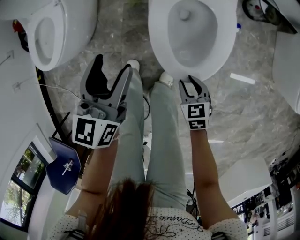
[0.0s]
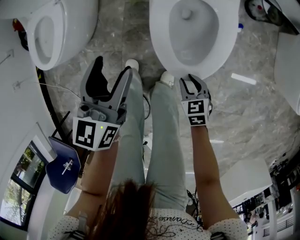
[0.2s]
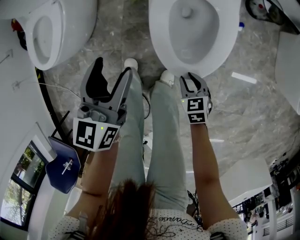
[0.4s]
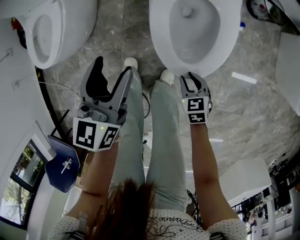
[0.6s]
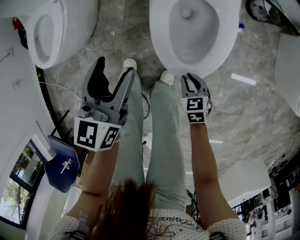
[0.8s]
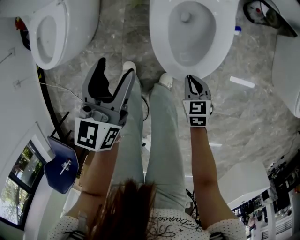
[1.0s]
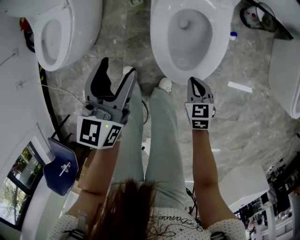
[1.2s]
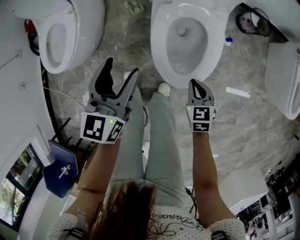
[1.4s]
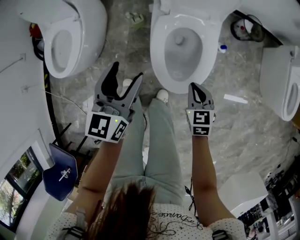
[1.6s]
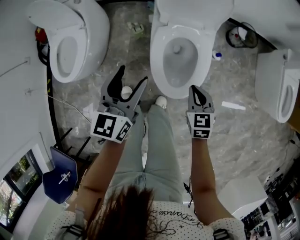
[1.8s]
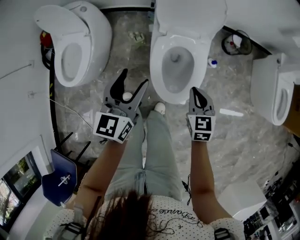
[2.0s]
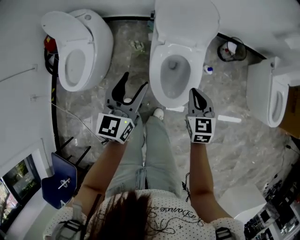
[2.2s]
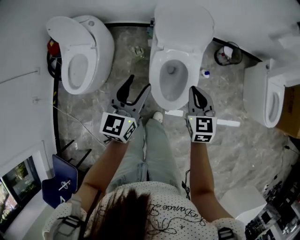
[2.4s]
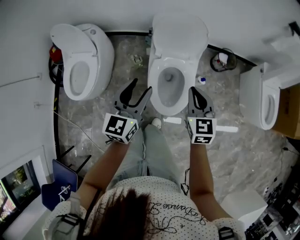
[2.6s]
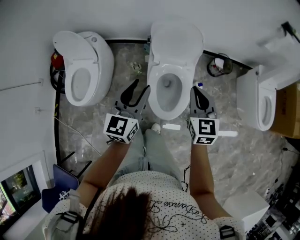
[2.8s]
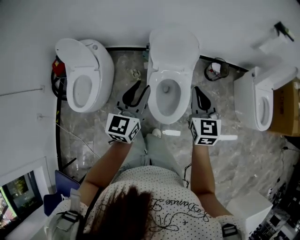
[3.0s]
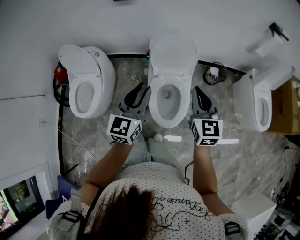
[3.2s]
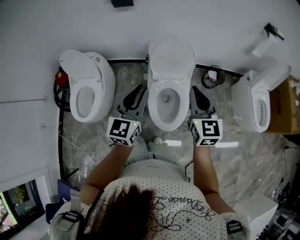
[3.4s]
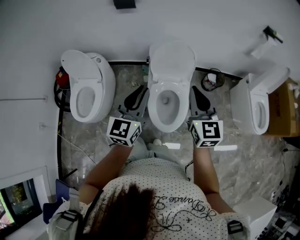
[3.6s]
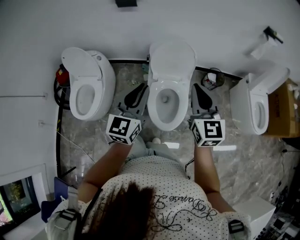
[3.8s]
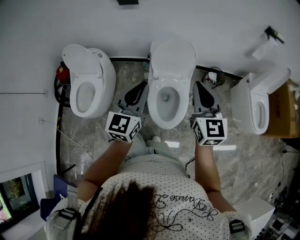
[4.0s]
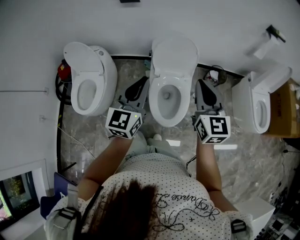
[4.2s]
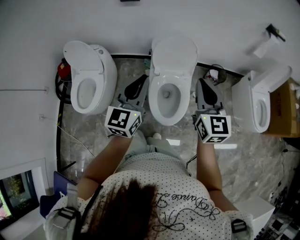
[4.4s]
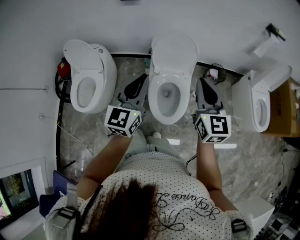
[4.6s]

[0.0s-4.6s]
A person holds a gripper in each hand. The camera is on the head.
0.0s to 1.6s: The left gripper travels upward by approximately 10 cm. Meanwhile the right gripper is displaced upward, forward and to the right by roughly 15 cm, and closes up.
1.6s to 3.0s: The right gripper is displaced upward by some 40 cm, and changes its angle by approximately 30 degrees; the left gripper travels upward by some 25 cm, and closes.
3.0s to 4.6s: The grippers both shift upward by approximately 10 cm. The left gripper closes its fingers.

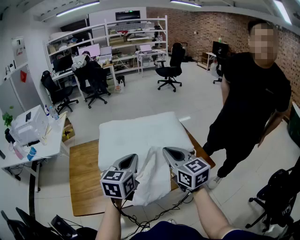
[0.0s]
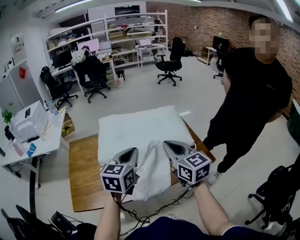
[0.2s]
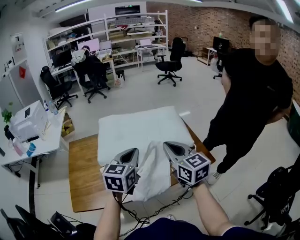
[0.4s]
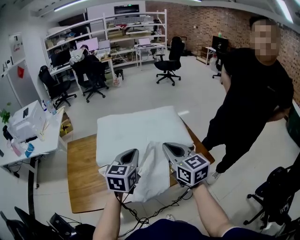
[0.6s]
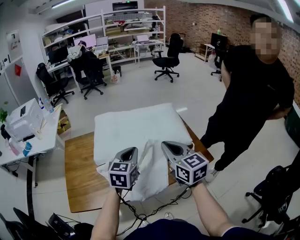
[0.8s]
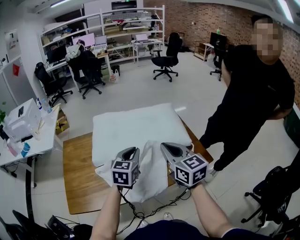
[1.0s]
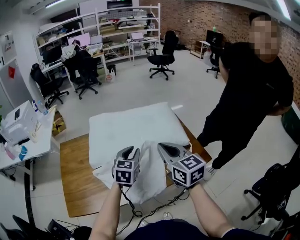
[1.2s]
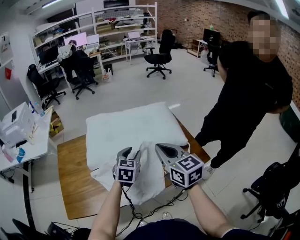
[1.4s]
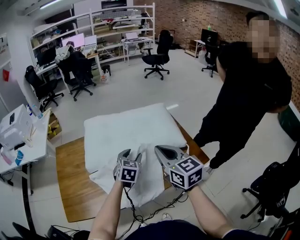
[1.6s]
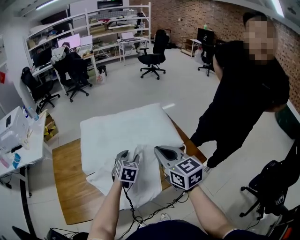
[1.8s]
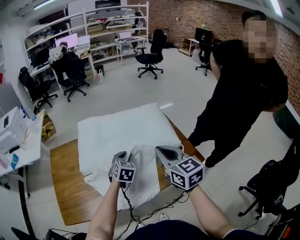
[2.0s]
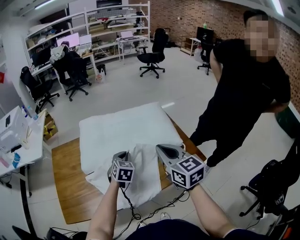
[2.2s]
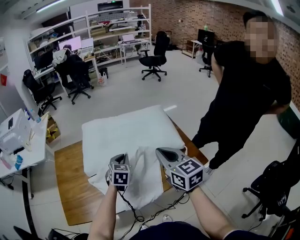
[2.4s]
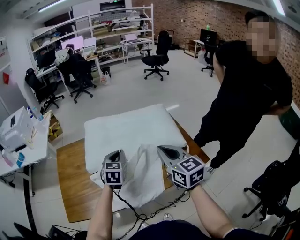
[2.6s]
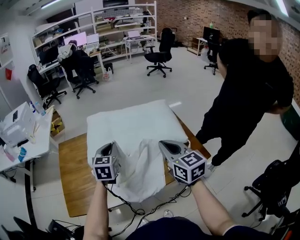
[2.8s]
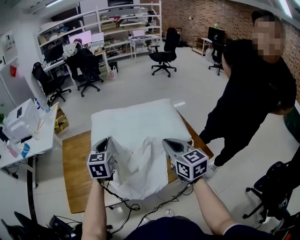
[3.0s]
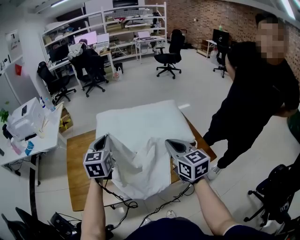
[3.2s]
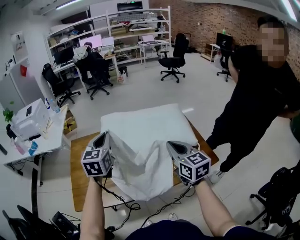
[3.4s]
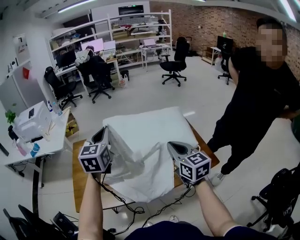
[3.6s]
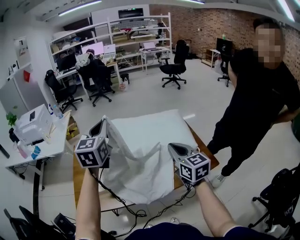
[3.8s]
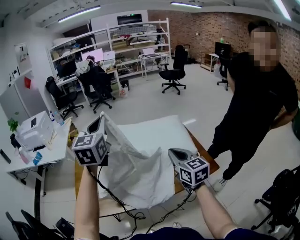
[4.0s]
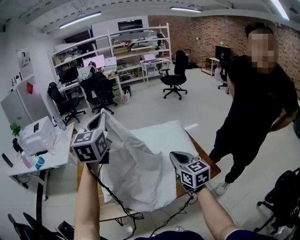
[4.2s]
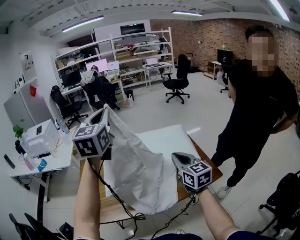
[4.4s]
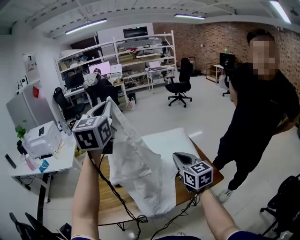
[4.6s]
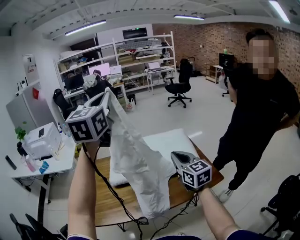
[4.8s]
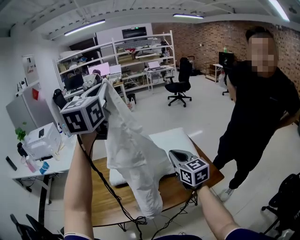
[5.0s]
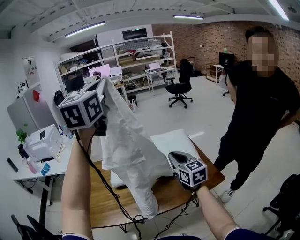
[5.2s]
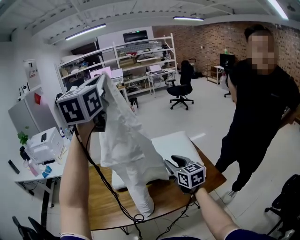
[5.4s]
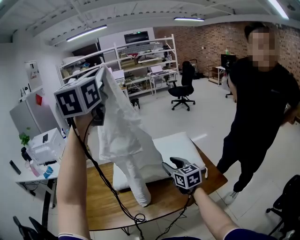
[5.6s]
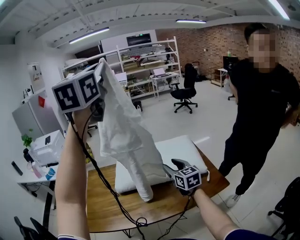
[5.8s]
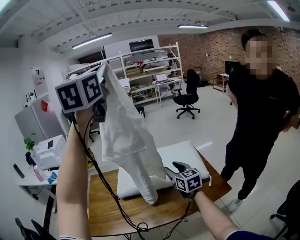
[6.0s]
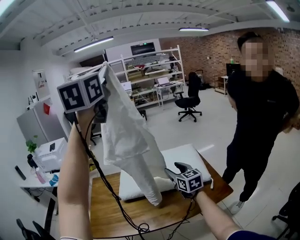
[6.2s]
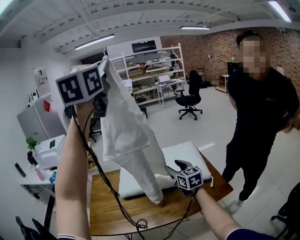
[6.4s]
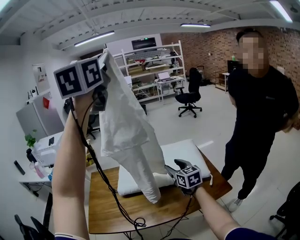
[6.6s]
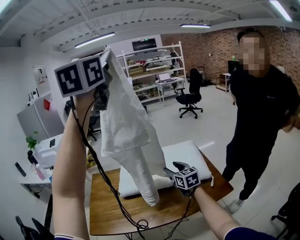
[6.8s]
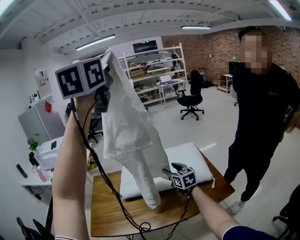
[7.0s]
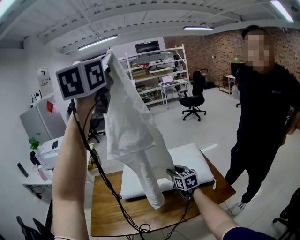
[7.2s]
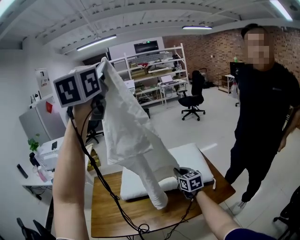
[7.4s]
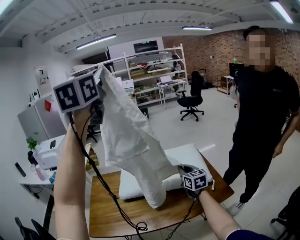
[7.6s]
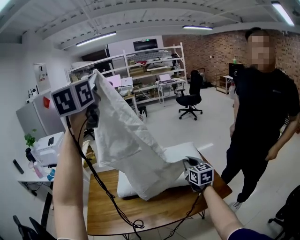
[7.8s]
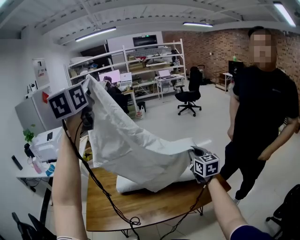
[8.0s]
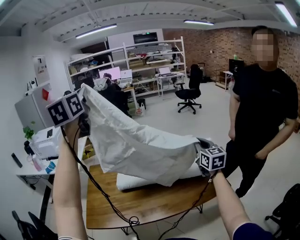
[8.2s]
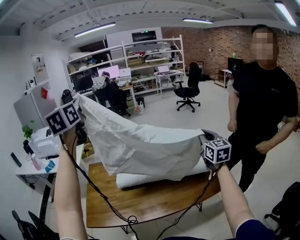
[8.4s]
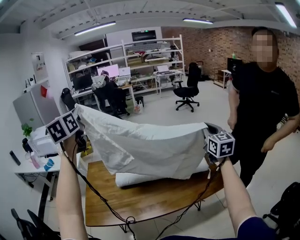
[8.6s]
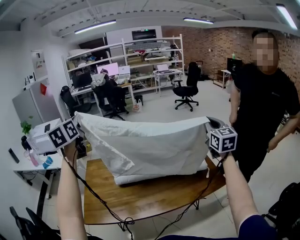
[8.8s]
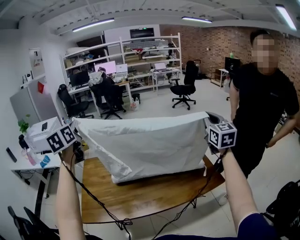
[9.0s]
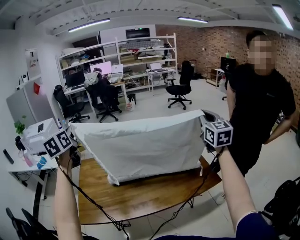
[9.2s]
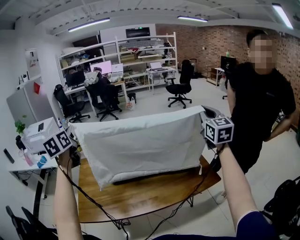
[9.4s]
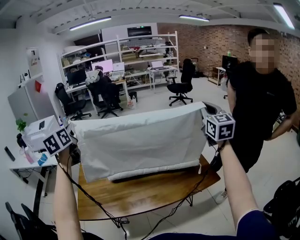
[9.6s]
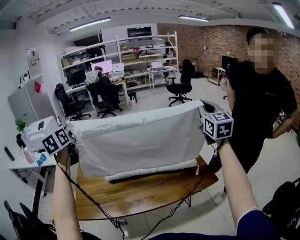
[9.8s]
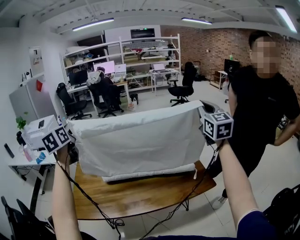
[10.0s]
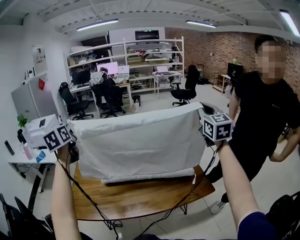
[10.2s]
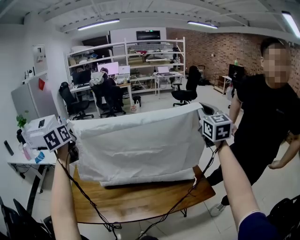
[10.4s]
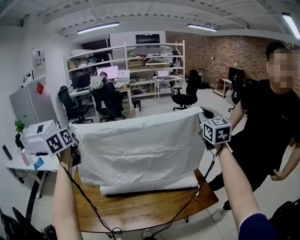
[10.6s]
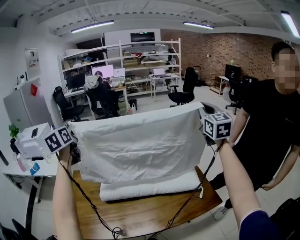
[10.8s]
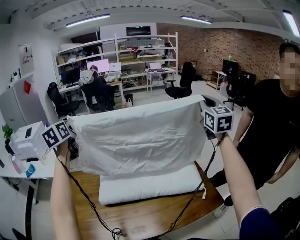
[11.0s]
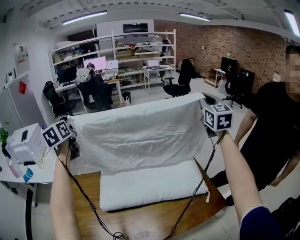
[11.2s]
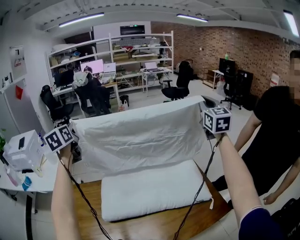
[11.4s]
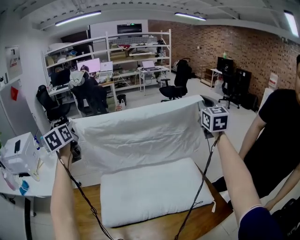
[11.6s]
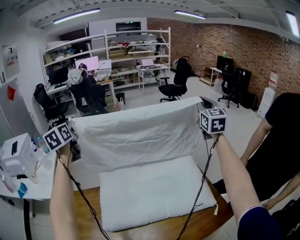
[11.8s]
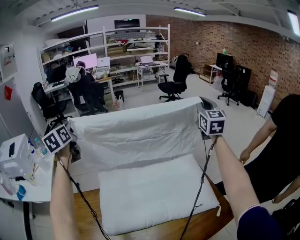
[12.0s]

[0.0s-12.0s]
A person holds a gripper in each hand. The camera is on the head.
0.0s to 1.6s: The left gripper is displaced downward and forward by roughly 20 cm, turns by about 20 degrees, and opens its fingers.
1.6s to 3.0s: The left gripper goes approximately 20 cm to the left and upward, swivels roughly 20 degrees, and closes up.
3.0s to 4.4s: The left gripper travels upward by approximately 30 cm, and rotates some 20 degrees.
4.4s to 6.0s: The right gripper moves forward, roughly 10 cm, and opens its fingers; the left gripper shifts some 25 cm upward.
6.0s to 7.6s: The right gripper shifts by about 5 cm, and closes up.
7.6s to 9.0s: The left gripper travels downward and to the left by some 35 cm, and changes its angle by roughly 30 degrees. Meanwhile the right gripper moves upward and to the right, some 25 cm, and rotates about 30 degrees.
9.0s to 10.4s: The right gripper is displaced upward by about 5 cm.
10.4s to 12.0s: Both grippers move forward, some 35 cm.

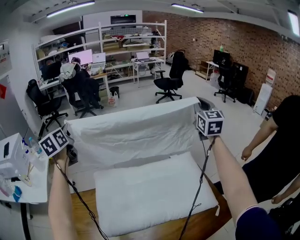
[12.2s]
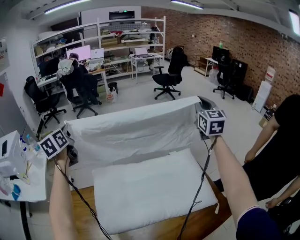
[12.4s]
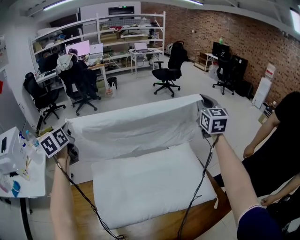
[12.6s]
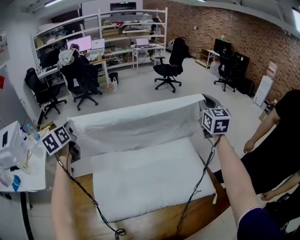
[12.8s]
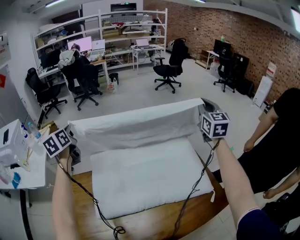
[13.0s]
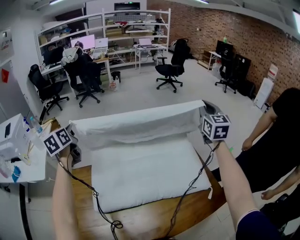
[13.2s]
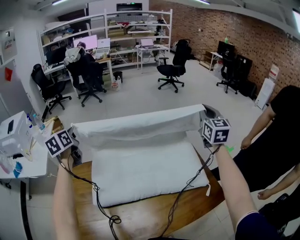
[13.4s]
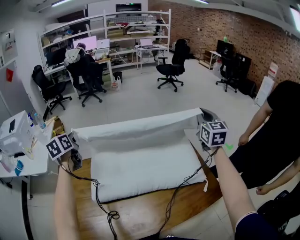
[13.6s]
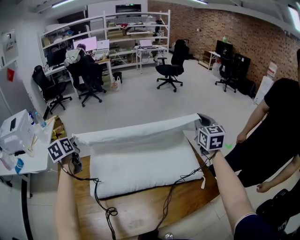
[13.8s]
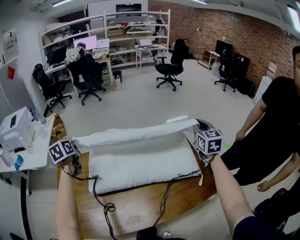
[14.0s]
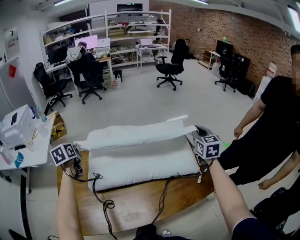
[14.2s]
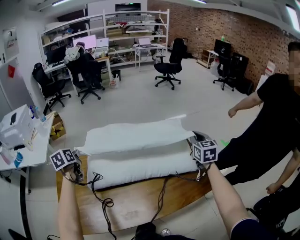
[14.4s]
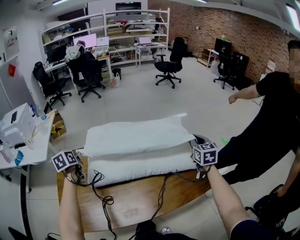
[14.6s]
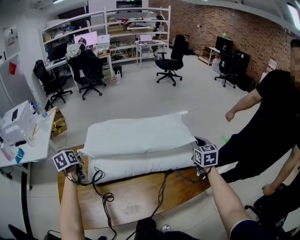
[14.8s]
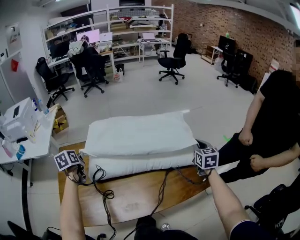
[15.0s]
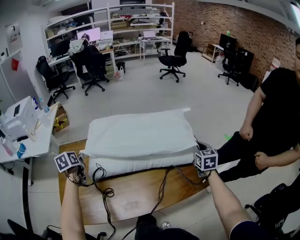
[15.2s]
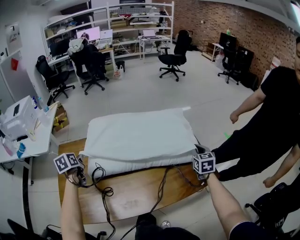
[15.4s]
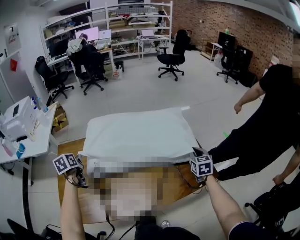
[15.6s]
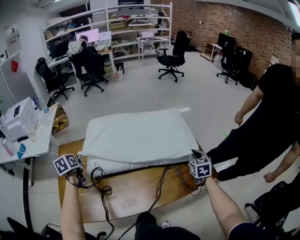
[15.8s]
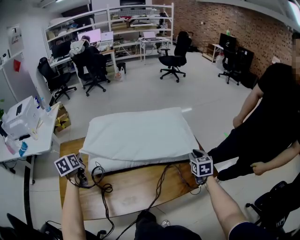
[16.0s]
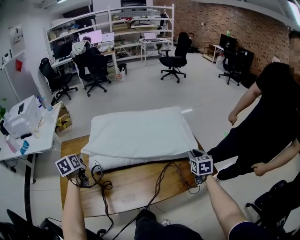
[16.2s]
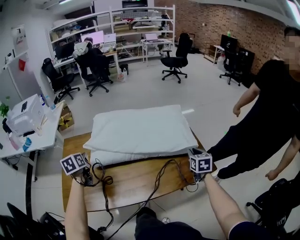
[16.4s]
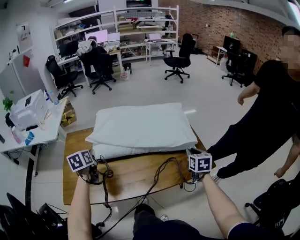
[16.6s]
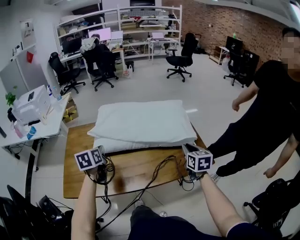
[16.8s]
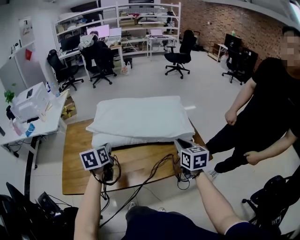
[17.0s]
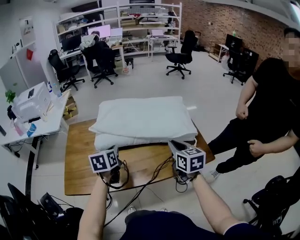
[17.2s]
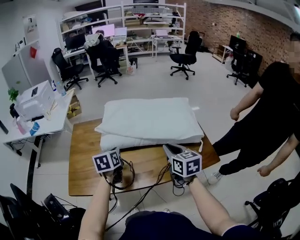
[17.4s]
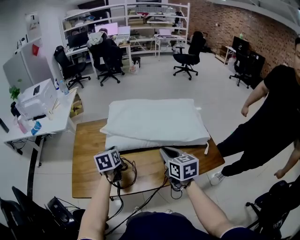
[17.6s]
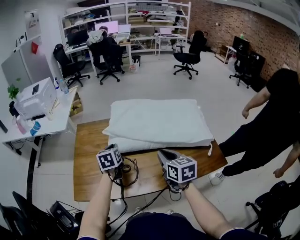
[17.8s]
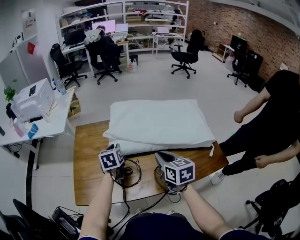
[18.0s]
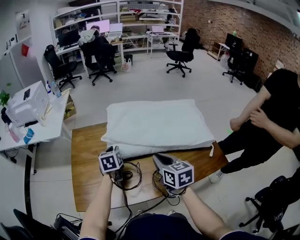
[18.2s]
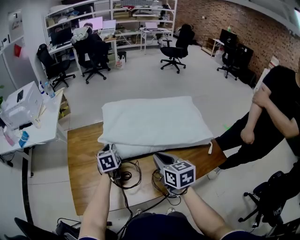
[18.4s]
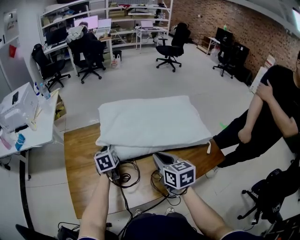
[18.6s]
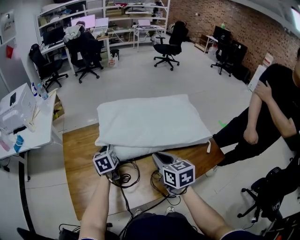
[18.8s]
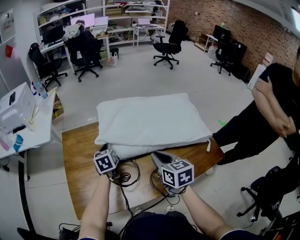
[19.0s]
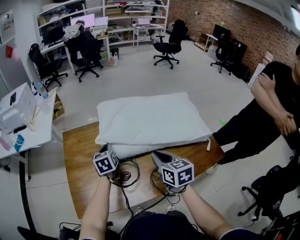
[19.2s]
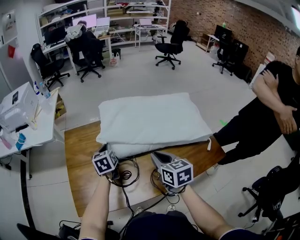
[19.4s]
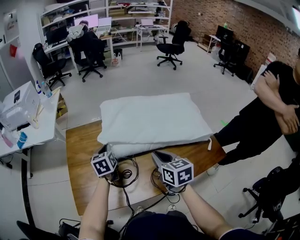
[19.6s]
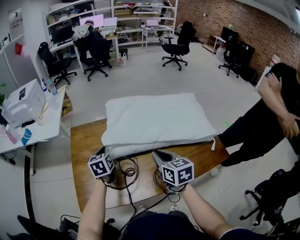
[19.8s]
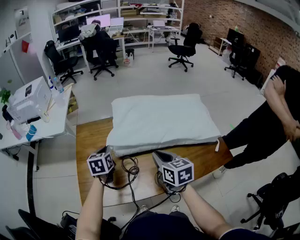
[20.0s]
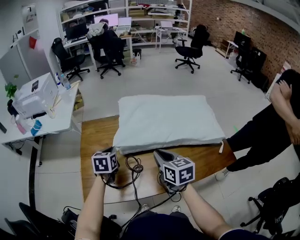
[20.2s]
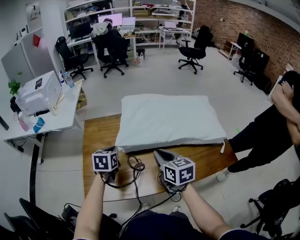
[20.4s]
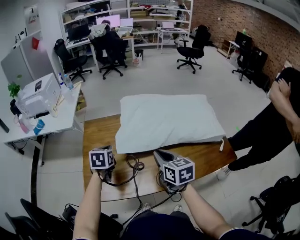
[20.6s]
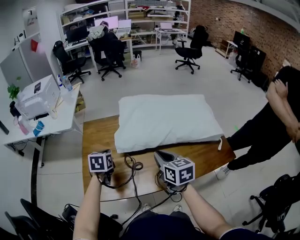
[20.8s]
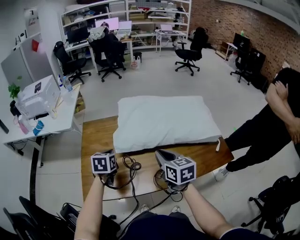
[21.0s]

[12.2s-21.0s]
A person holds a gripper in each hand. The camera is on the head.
12.2s to 13.6s: The grippers both shift backward and downward by roughly 20 cm.
13.6s to 15.2s: The grippers both shift downward and backward by roughly 25 cm. The left gripper swivels approximately 20 degrees, while the right gripper swivels about 20 degrees.
15.2s to 16.6s: The right gripper is displaced backward by about 10 cm, and opens; the left gripper goes about 10 cm backward and to the right.
16.6s to 18.0s: The right gripper is displaced to the left by about 30 cm, and swivels roughly 30 degrees; the left gripper moves some 10 cm to the right and comes back.
18.0s to 19.6s: The grippers make only small movements.
19.6s to 21.0s: The left gripper travels backward and to the left by some 10 cm.
